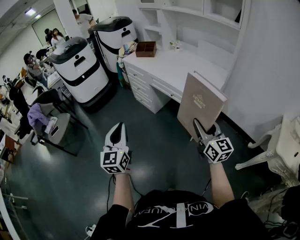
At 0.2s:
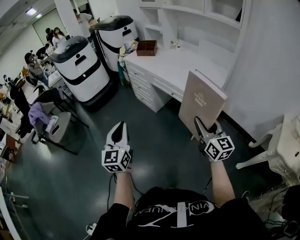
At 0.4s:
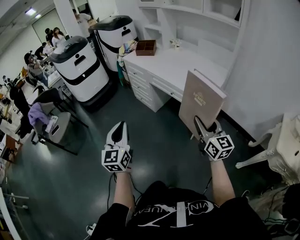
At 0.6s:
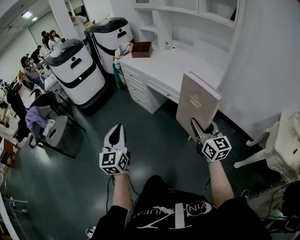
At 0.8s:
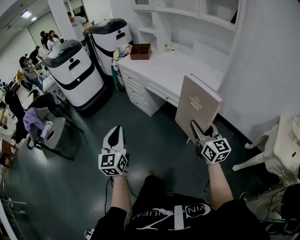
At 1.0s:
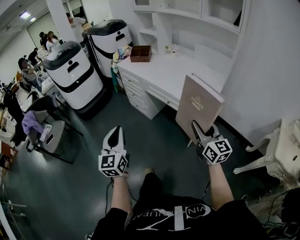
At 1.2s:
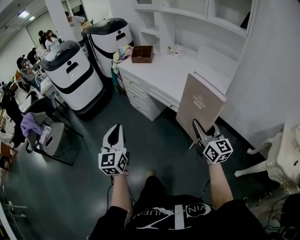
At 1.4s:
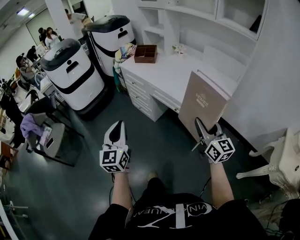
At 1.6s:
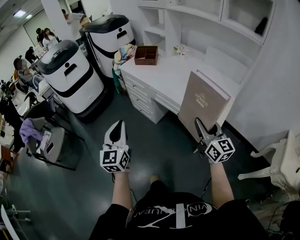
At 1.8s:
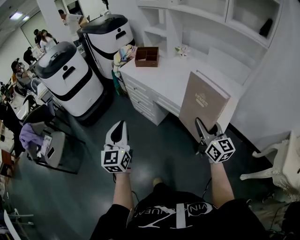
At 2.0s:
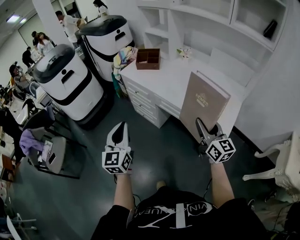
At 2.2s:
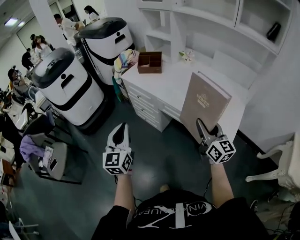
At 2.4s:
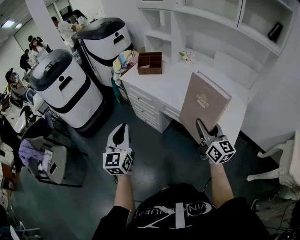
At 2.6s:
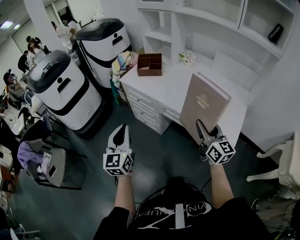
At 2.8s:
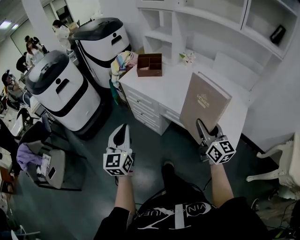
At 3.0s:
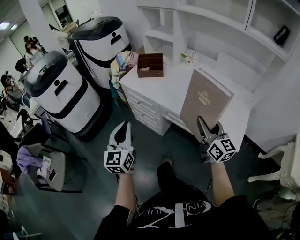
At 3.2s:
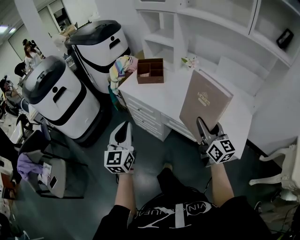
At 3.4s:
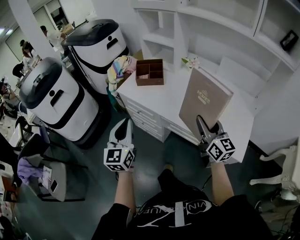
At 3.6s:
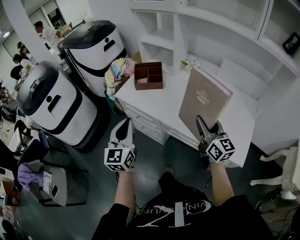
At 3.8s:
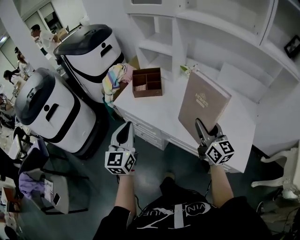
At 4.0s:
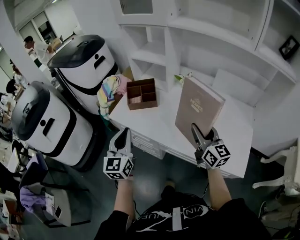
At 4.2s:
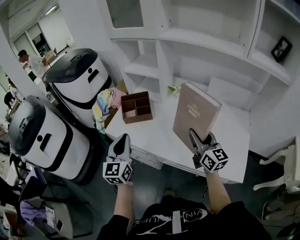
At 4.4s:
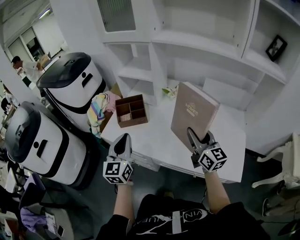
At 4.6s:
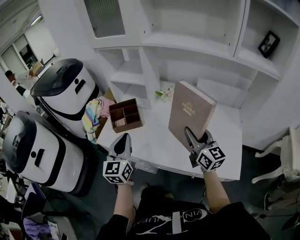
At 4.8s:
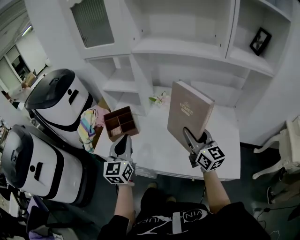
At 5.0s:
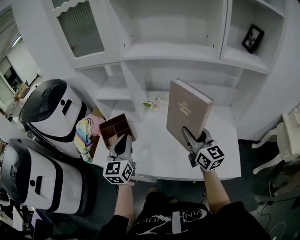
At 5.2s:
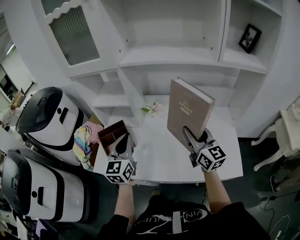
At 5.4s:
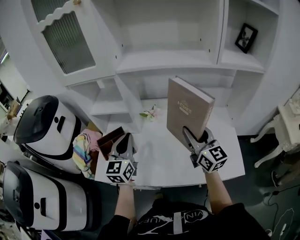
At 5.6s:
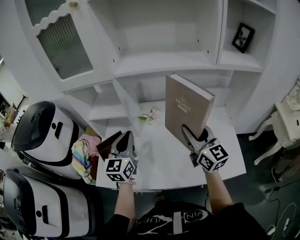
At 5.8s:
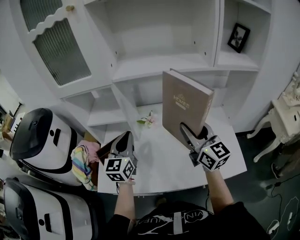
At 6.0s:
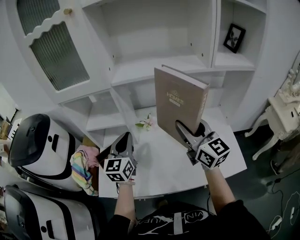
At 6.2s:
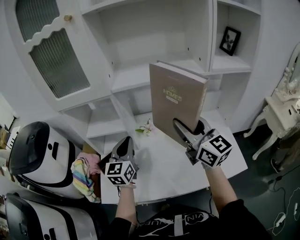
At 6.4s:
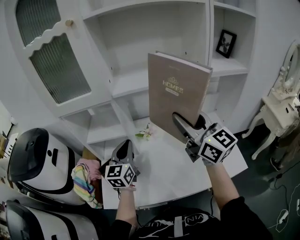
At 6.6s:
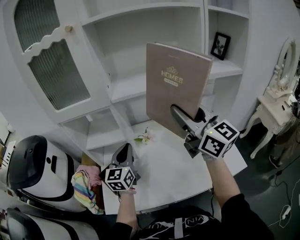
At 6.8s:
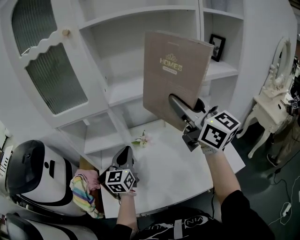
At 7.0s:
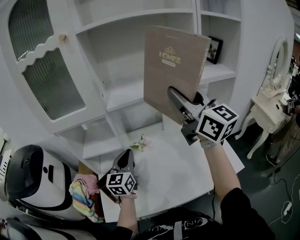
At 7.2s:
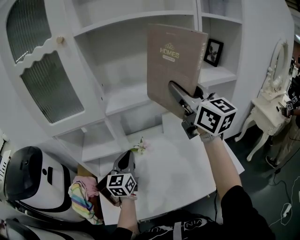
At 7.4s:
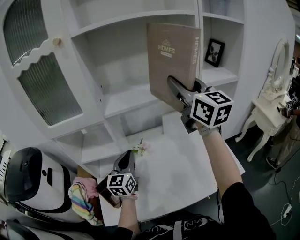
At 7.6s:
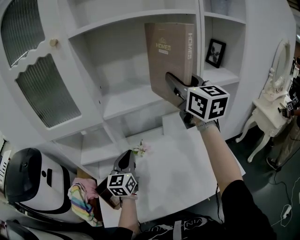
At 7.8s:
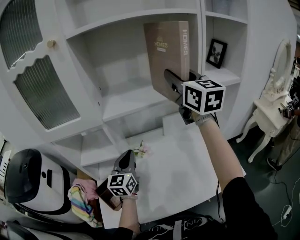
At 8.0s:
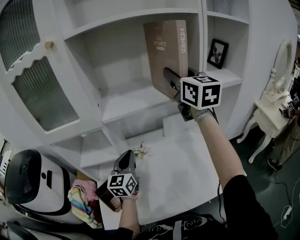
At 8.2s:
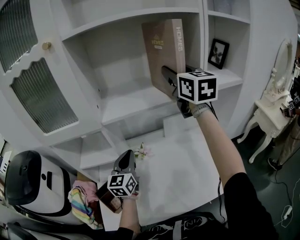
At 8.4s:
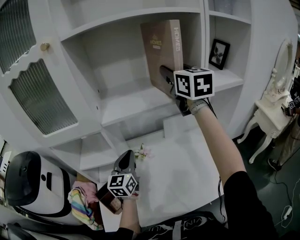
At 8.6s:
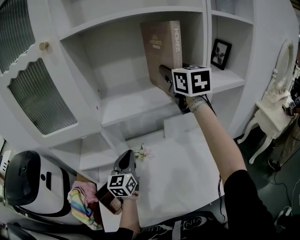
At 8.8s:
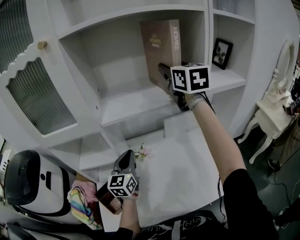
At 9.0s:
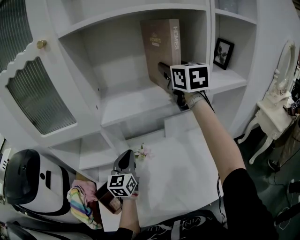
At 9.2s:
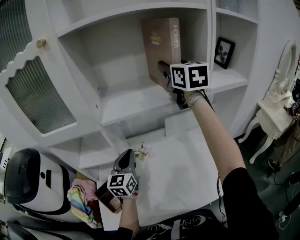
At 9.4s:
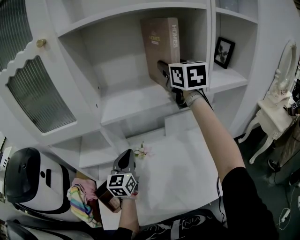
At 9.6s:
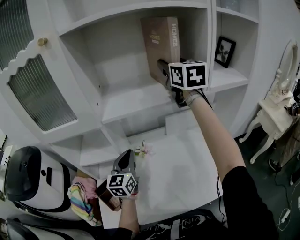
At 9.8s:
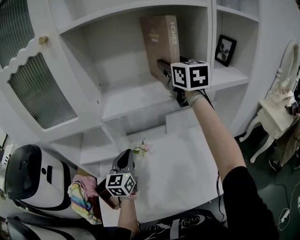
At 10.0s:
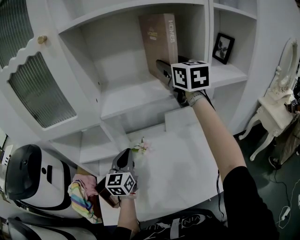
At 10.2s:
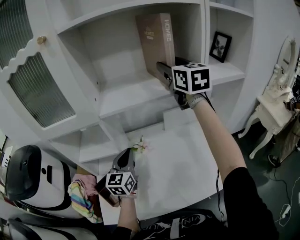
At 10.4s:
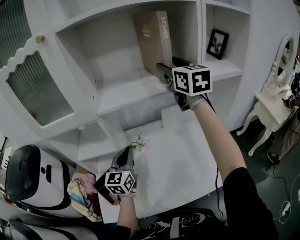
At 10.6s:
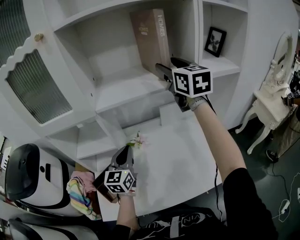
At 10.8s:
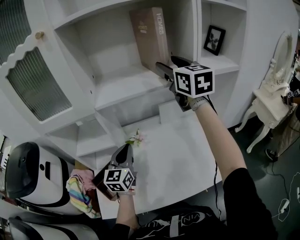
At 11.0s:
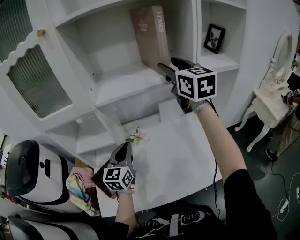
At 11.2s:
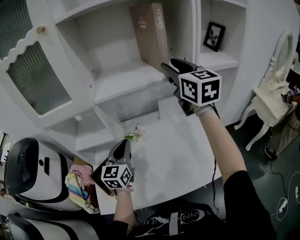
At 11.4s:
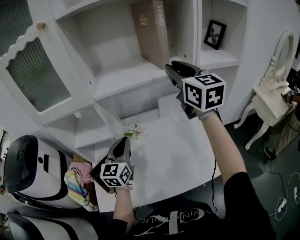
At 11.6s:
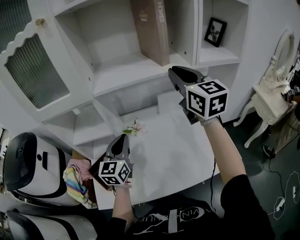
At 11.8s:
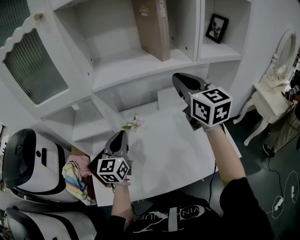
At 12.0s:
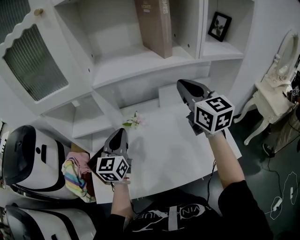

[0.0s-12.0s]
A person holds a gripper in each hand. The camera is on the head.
0.0s to 1.6s: Both grippers travel together forward, approximately 25 cm.
1.6s to 3.0s: The left gripper moves forward, some 25 cm. The right gripper moves forward and to the left, some 25 cm.
3.0s to 4.4s: Both grippers move forward, approximately 25 cm.
4.4s to 6.0s: The right gripper heads upward and forward, covering roughly 20 cm, and rotates roughly 20 degrees; the left gripper travels forward by roughly 25 cm, and rotates approximately 30 degrees.
6.0s to 7.6s: The right gripper travels upward and forward by some 25 cm. Meanwhile the left gripper is displaced forward by about 5 cm.
7.6s to 9.0s: The right gripper goes some 15 cm forward.
9.0s to 10.4s: The right gripper shifts by about 5 cm.
10.4s to 12.0s: The right gripper heads backward and downward, covering roughly 15 cm, and closes up.

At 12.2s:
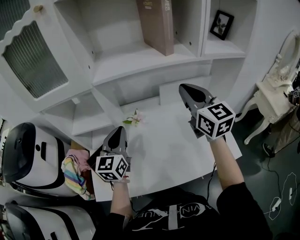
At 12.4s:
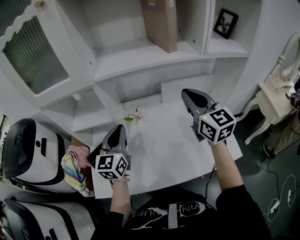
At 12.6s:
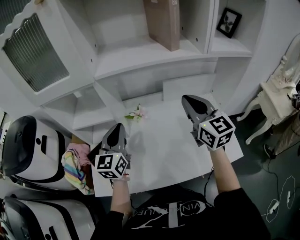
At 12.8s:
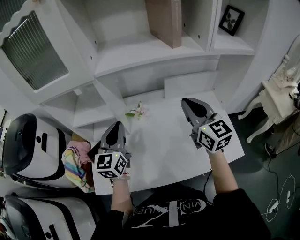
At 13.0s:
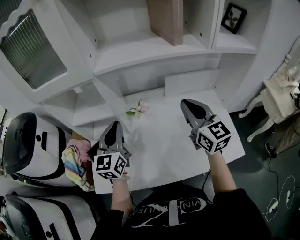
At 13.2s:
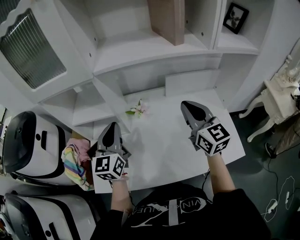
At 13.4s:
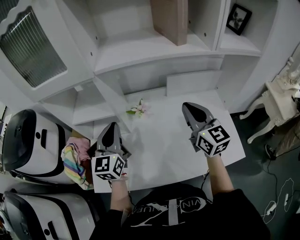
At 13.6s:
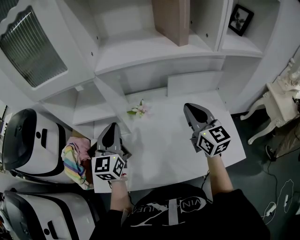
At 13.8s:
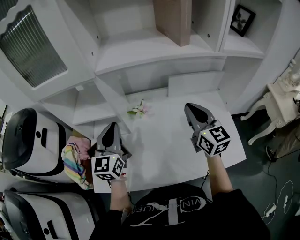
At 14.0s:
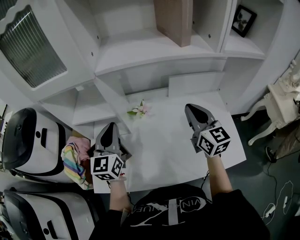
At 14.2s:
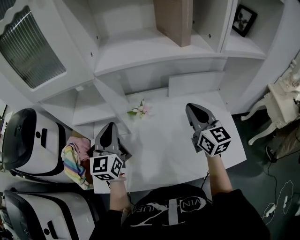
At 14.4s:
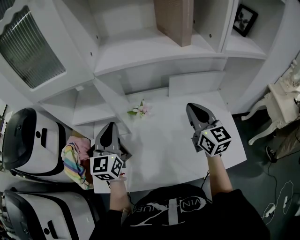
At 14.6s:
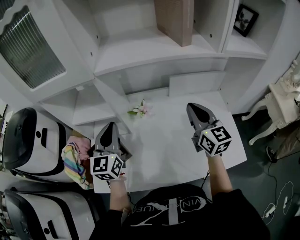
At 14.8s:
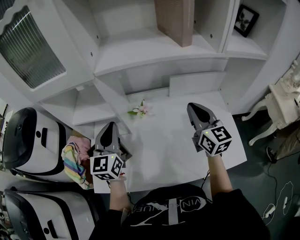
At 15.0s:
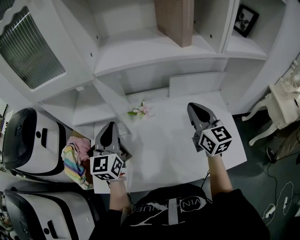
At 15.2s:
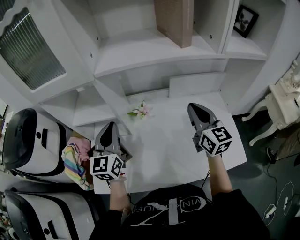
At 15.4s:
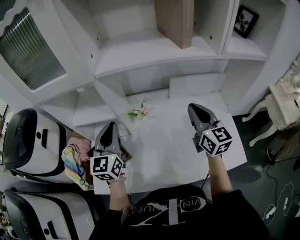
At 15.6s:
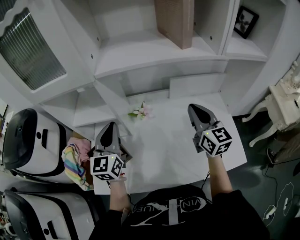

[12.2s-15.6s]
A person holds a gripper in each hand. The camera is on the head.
12.2s to 13.8s: The right gripper is displaced downward by about 10 cm.
13.8s to 15.6s: The grippers make only small movements.

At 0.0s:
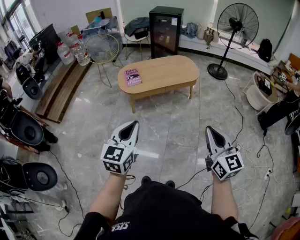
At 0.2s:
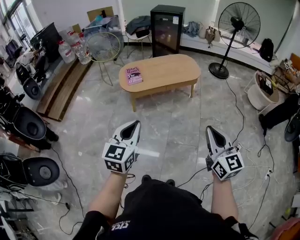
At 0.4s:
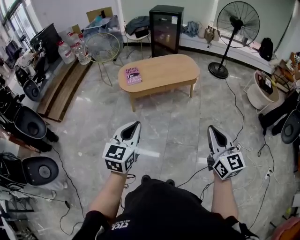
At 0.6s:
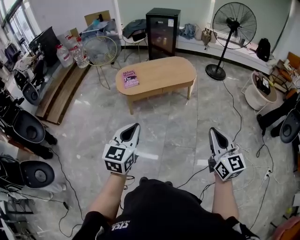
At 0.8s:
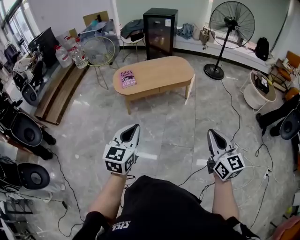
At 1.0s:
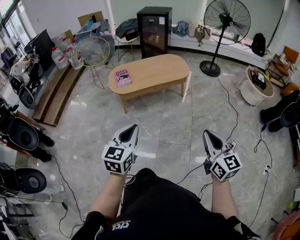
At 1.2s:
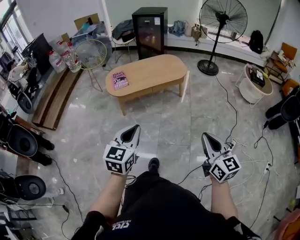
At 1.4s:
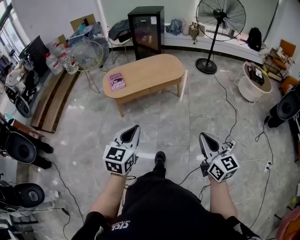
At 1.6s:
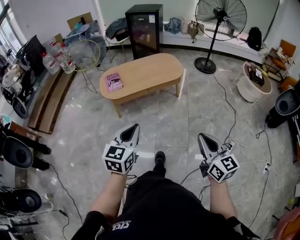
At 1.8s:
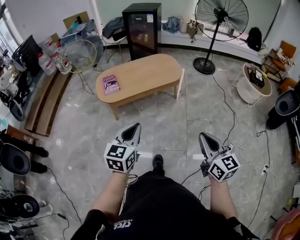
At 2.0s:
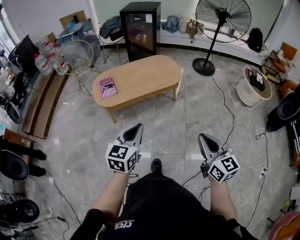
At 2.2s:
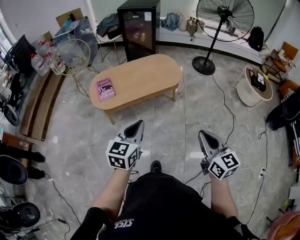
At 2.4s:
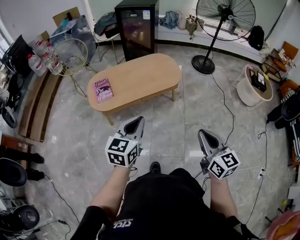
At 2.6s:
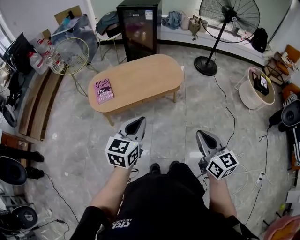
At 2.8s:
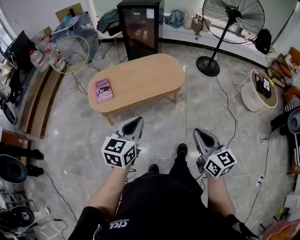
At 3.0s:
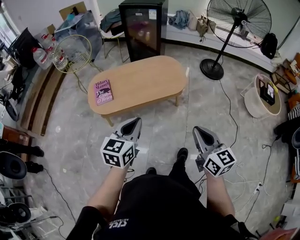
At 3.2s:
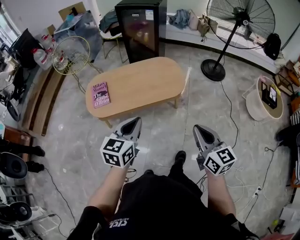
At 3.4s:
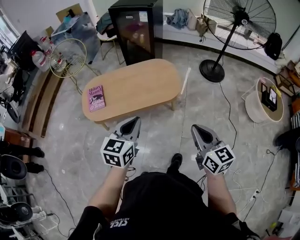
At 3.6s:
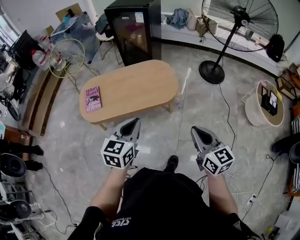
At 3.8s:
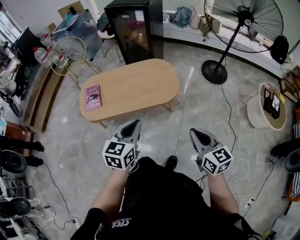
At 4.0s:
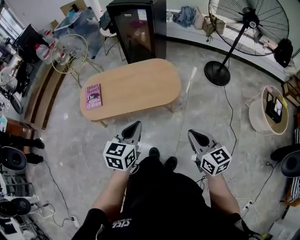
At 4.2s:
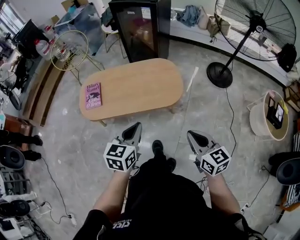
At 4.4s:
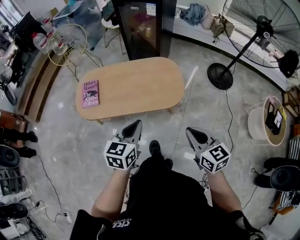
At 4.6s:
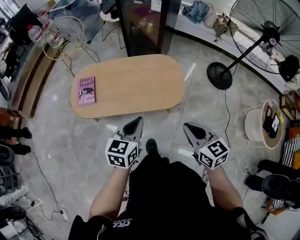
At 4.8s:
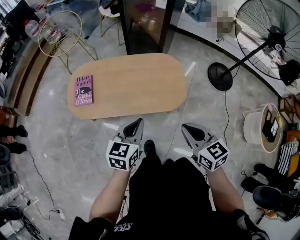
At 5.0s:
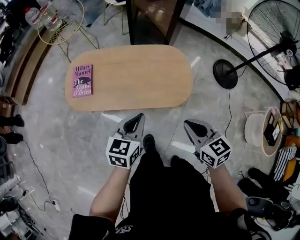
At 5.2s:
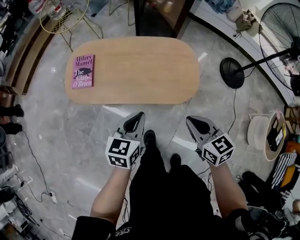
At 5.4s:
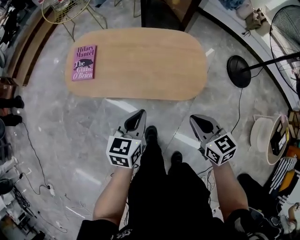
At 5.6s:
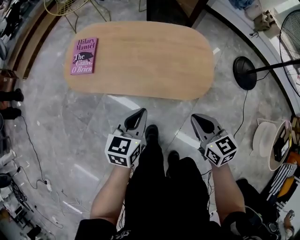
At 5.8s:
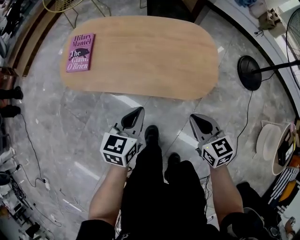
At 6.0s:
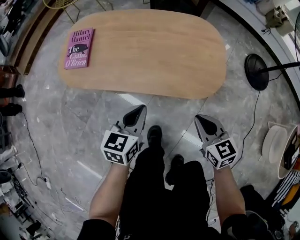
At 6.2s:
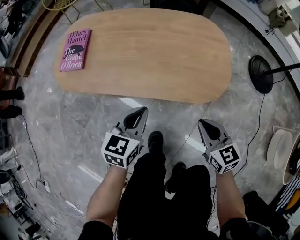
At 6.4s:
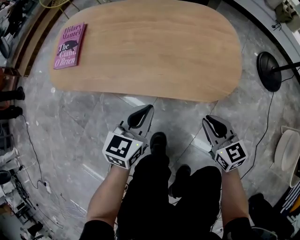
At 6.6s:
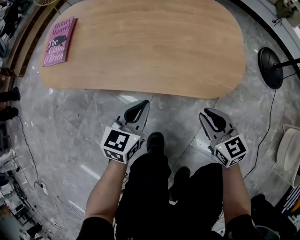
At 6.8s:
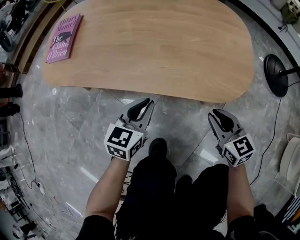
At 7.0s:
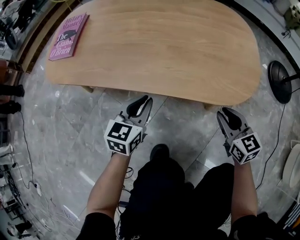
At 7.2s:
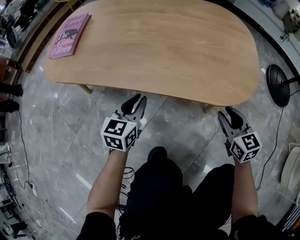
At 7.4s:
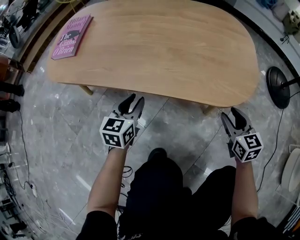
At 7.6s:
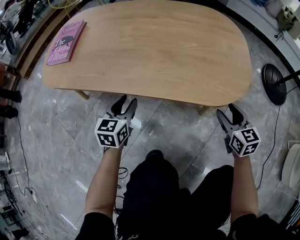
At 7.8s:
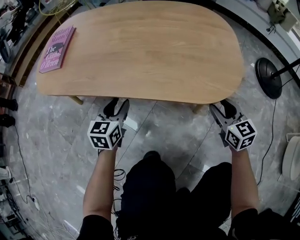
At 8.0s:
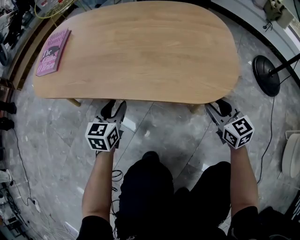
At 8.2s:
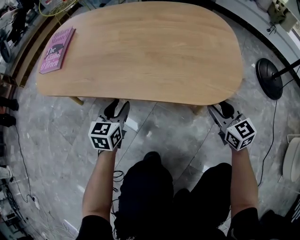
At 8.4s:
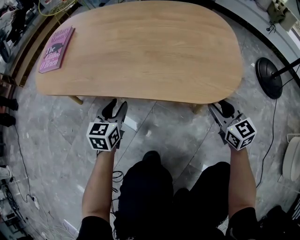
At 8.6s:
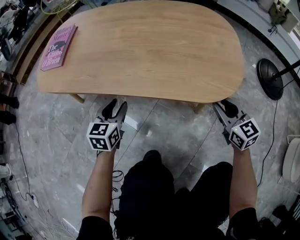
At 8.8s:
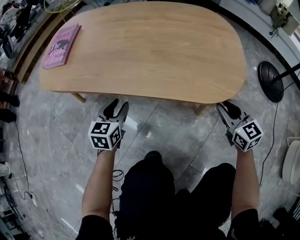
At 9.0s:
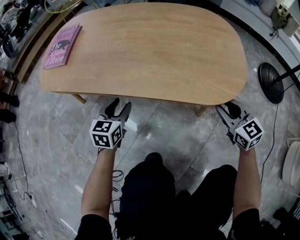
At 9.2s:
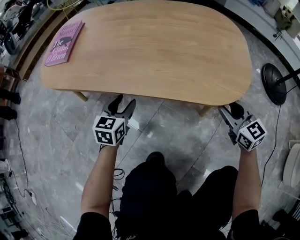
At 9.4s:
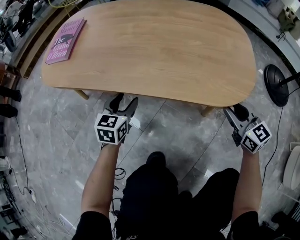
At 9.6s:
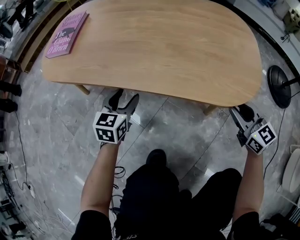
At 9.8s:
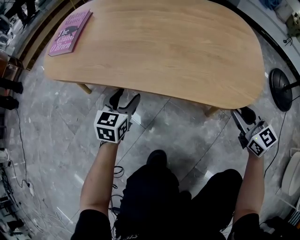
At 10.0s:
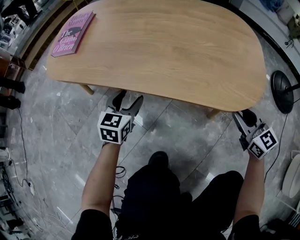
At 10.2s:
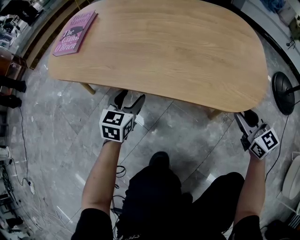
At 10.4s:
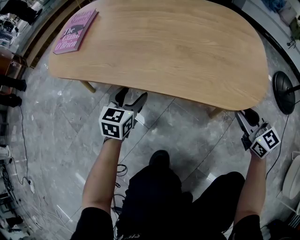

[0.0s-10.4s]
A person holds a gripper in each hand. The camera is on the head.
0.0s to 1.4s: The right gripper travels to the right and downward by some 15 cm; the left gripper heads to the right, covering approximately 15 cm.
1.4s to 3.0s: The grippers both shift forward by roughly 40 cm.
3.0s to 4.4s: Both grippers move forward and to the right, some 25 cm. The right gripper swivels approximately 20 degrees.
4.4s to 6.0s: The left gripper heads downward, covering some 30 cm. The right gripper is displaced downward and forward by about 35 cm.
6.0s to 7.4s: The right gripper moves downward and to the right, about 25 cm, and opens its fingers; the left gripper heads downward, covering about 25 cm, and opens up.
7.4s to 9.0s: The grippers make only small movements.
9.0s to 10.4s: The grippers move only a little.
